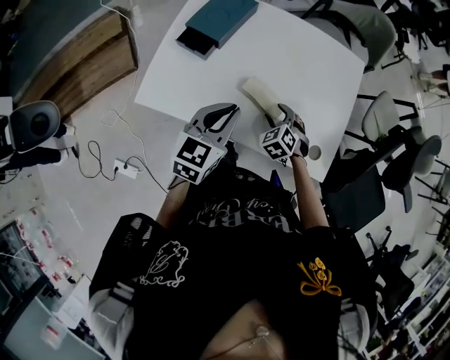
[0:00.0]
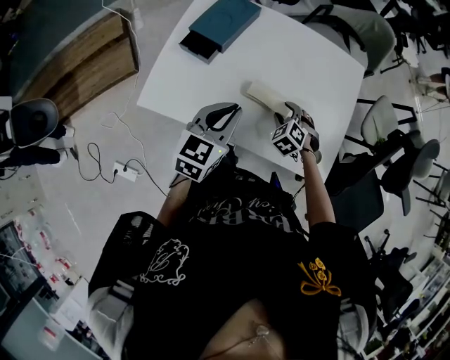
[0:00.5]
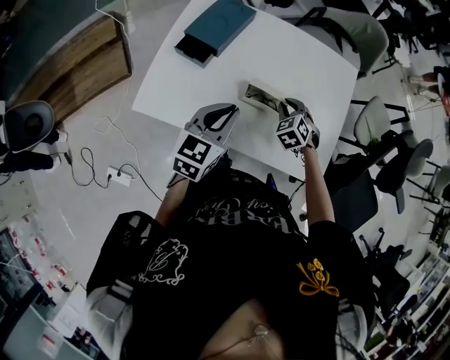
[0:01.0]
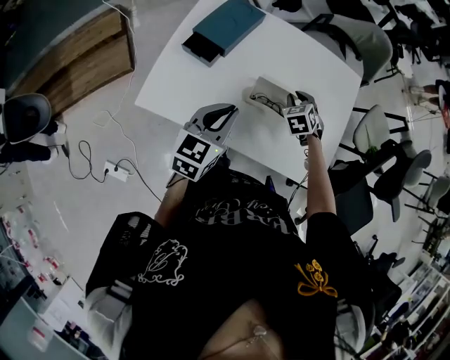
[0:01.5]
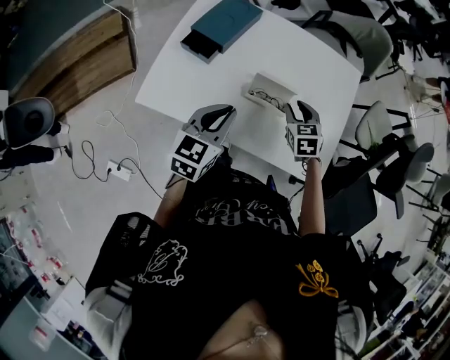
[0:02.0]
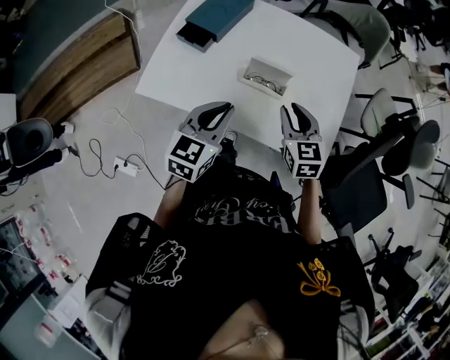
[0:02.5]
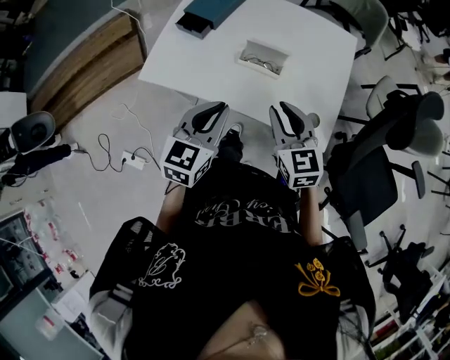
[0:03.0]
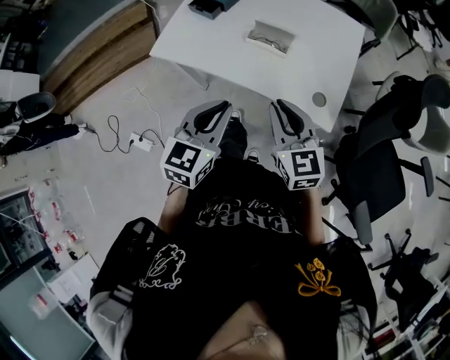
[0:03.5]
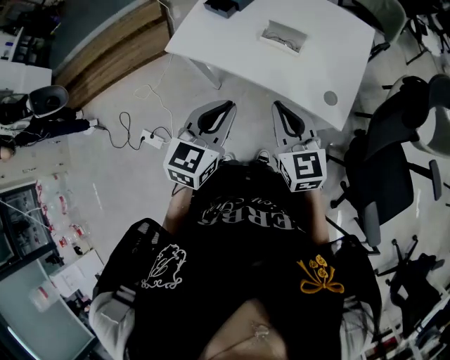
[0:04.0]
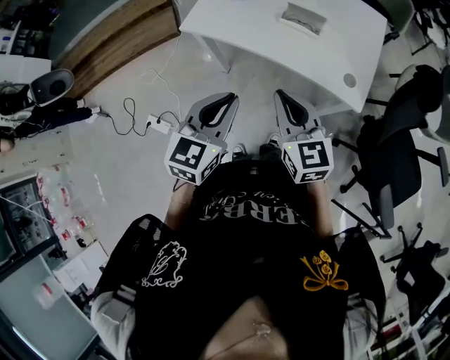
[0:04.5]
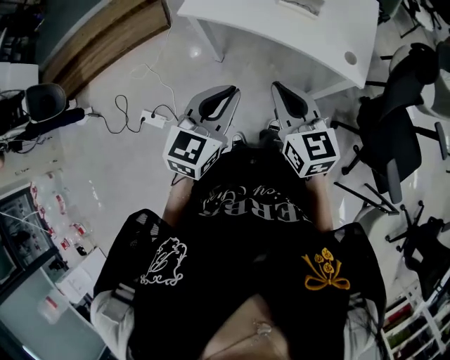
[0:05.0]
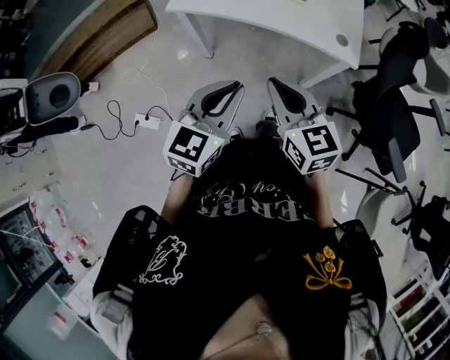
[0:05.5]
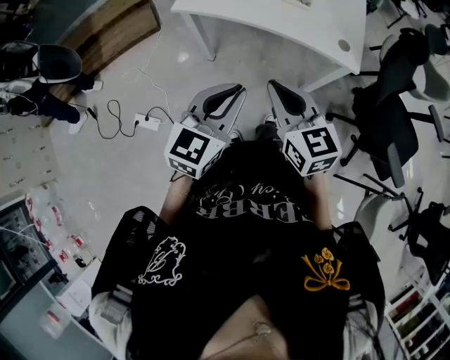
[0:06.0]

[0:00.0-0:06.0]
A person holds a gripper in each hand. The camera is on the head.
0:00.0 to 0:02.0: The right gripper heads upward and forward, covering approximately 10 cm, turns by roughly 30 degrees, and closes, then reopens.
0:02.0 to 0:04.0: The right gripper goes about 35 cm backward and upward, changes its angle by roughly 40 degrees, and closes; the left gripper moves backward, some 25 cm.
0:04.0 to 0:06.0: Both grippers move backward and to the left, approximately 20 cm.

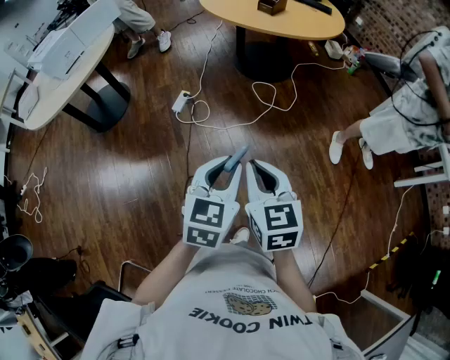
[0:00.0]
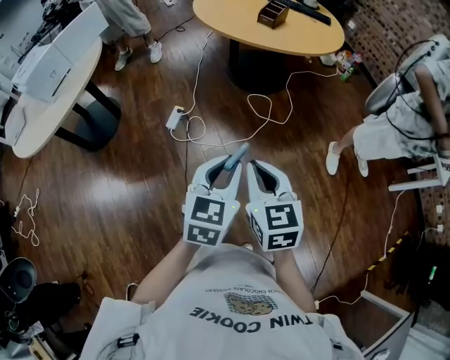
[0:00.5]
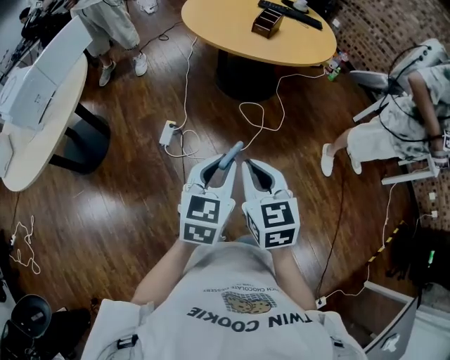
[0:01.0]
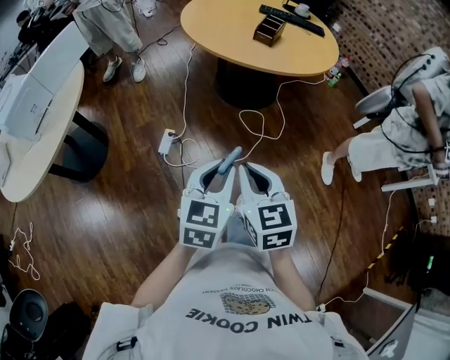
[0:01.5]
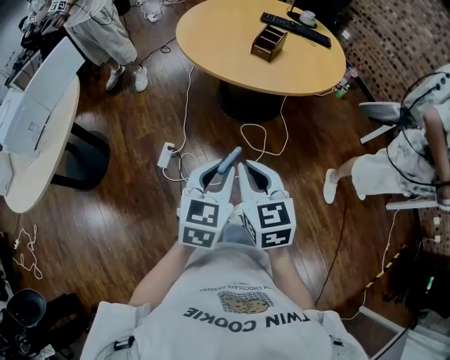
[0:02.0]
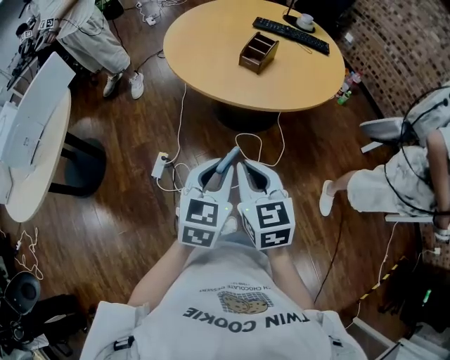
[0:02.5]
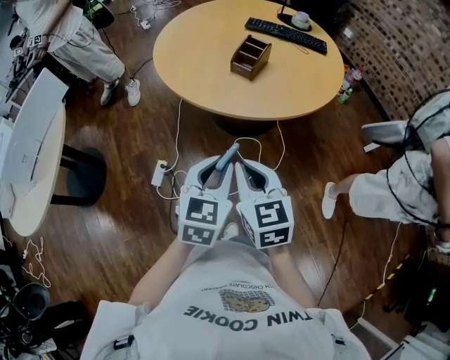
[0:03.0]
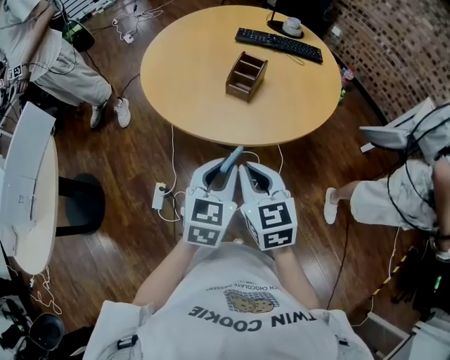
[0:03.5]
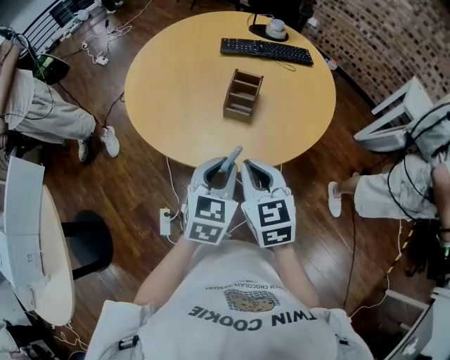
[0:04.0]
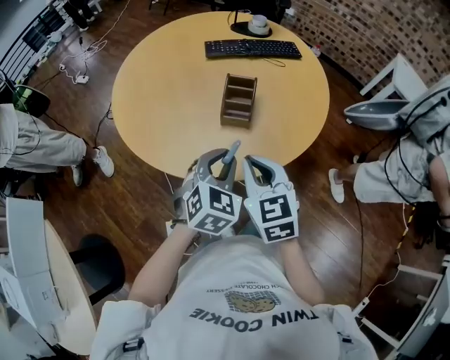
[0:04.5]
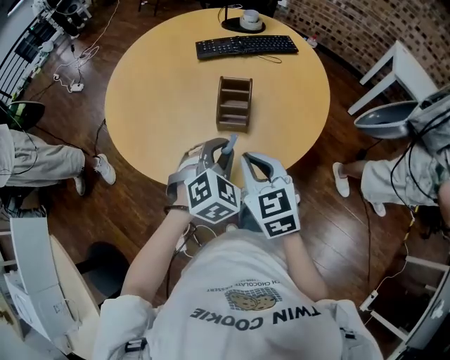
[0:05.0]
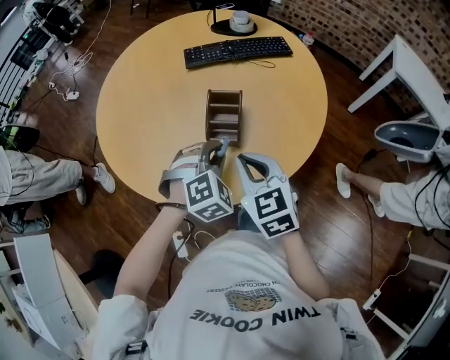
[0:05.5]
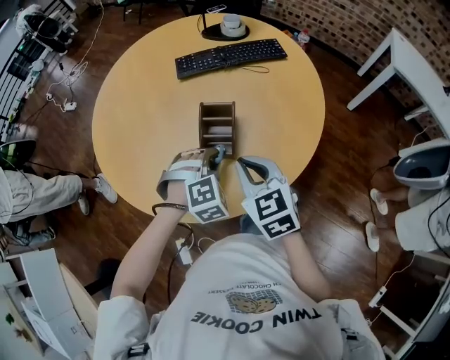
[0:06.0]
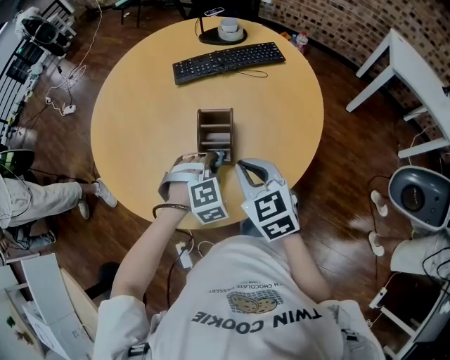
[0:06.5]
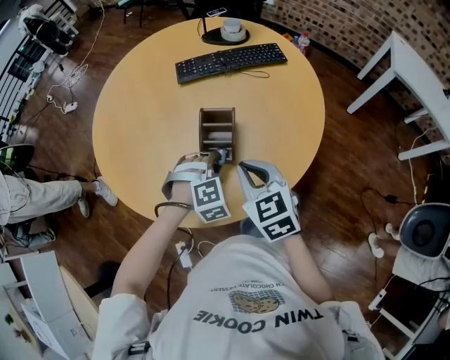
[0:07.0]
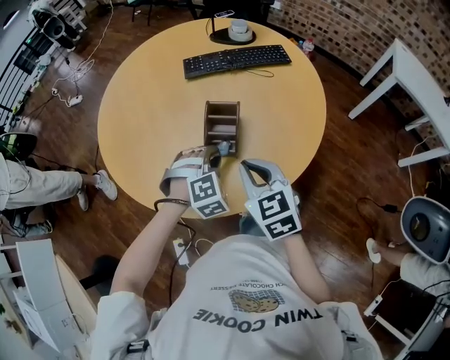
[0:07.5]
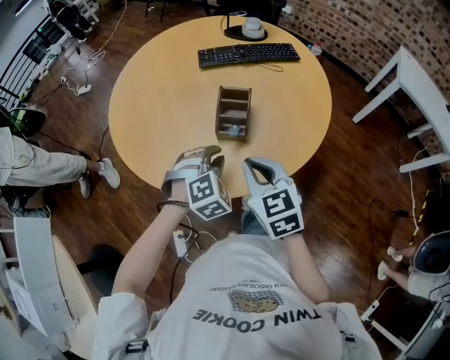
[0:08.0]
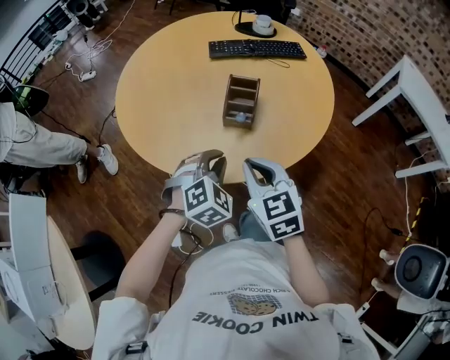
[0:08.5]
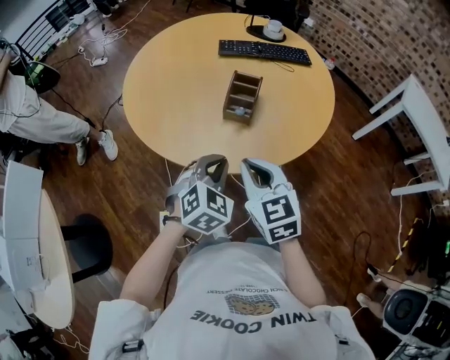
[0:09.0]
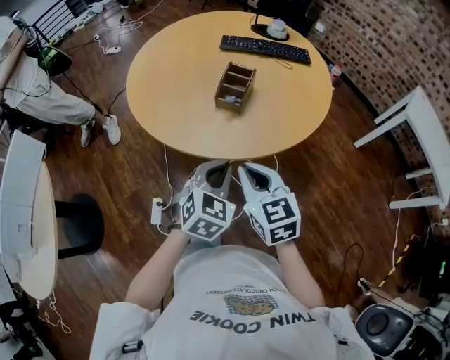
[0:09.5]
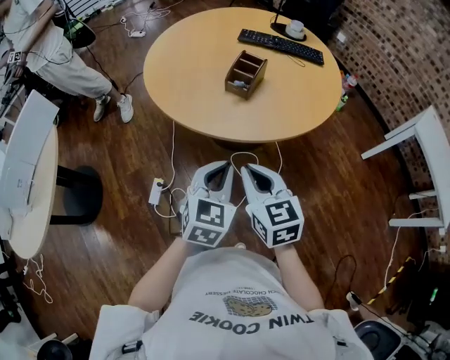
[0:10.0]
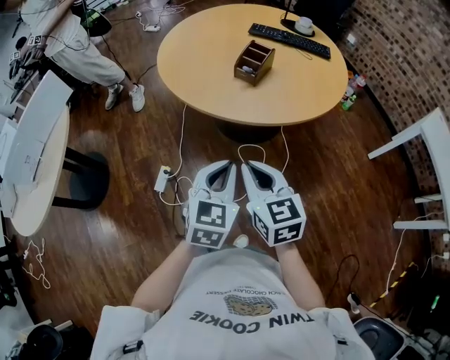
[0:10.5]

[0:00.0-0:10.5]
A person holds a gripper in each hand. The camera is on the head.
0:00.0 to 0:02.0: The grippers both shift forward by approximately 40 cm.
0:02.0 to 0:04.0: The two grippers go roughly 40 cm forward.
0:04.0 to 0:06.5: The right gripper is displaced forward by approximately 20 cm, while the left gripper is displaced forward and downward by approximately 25 cm, and twists approximately 70 degrees clockwise, seen from behind.
0:06.5 to 0:08.5: The left gripper shifts some 15 cm backward, upward and to the left, and turns by some 30 degrees, while the right gripper heads backward and to the left, covering some 15 cm.
0:08.5 to 0:10.5: Both grippers move backward, roughly 25 cm. The left gripper rolls counterclockwise, seen from behind, by about 50 degrees; the right gripper rotates roughly 20 degrees.

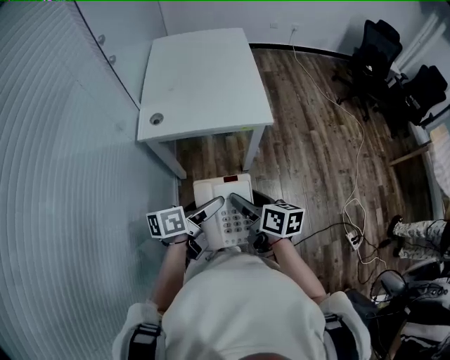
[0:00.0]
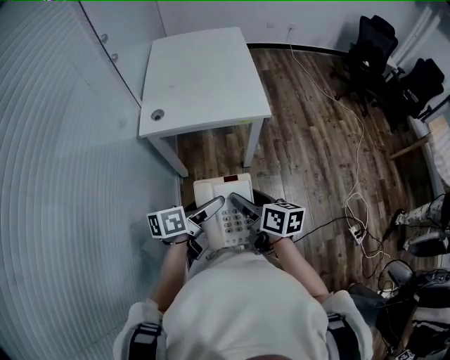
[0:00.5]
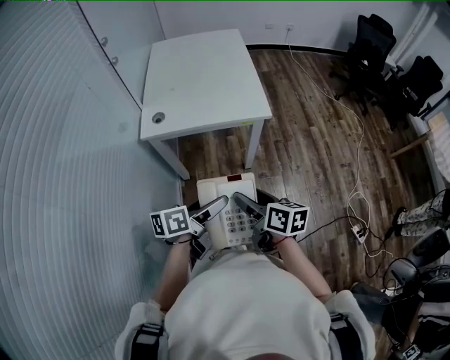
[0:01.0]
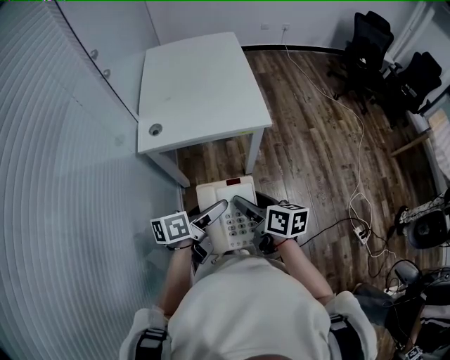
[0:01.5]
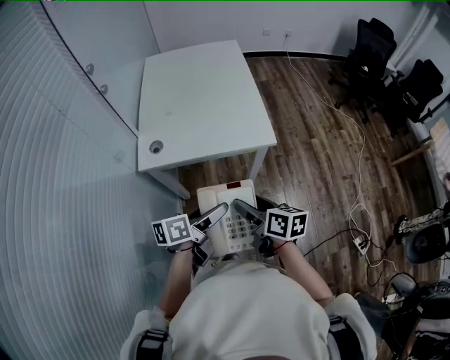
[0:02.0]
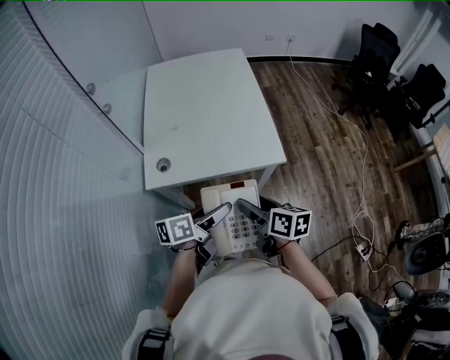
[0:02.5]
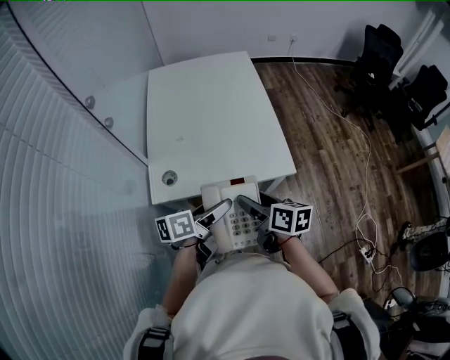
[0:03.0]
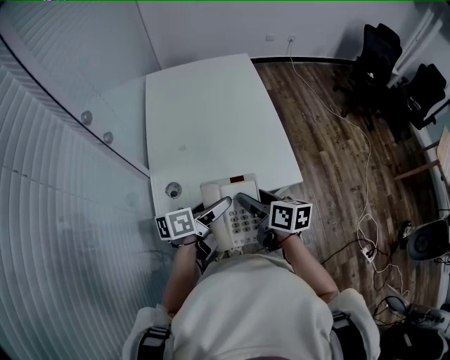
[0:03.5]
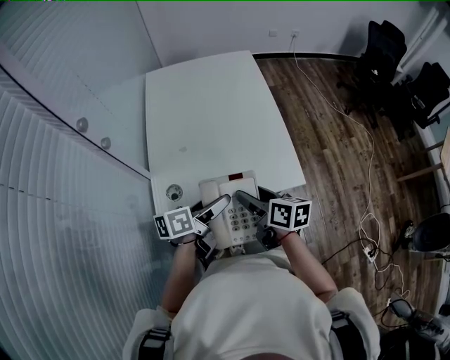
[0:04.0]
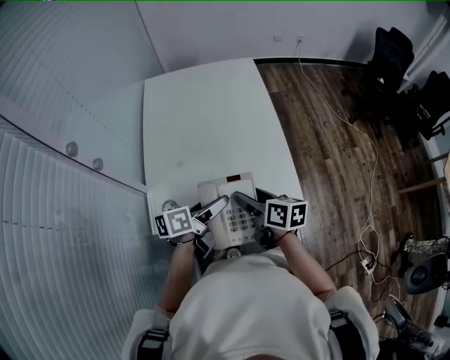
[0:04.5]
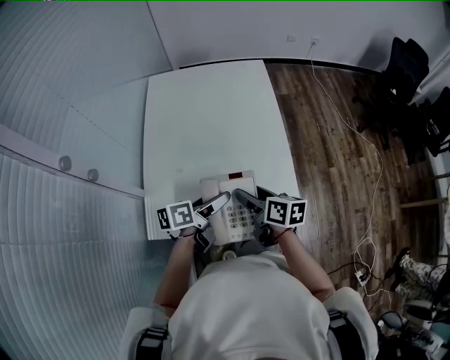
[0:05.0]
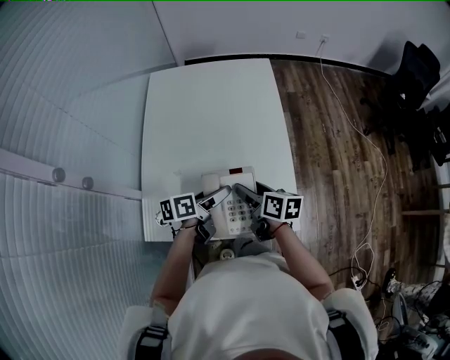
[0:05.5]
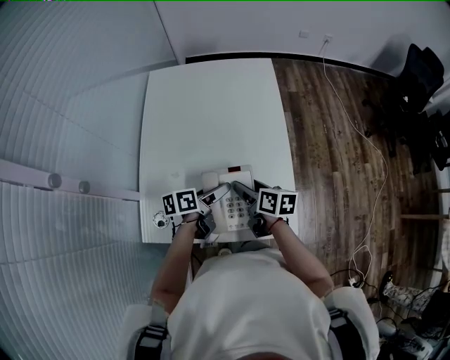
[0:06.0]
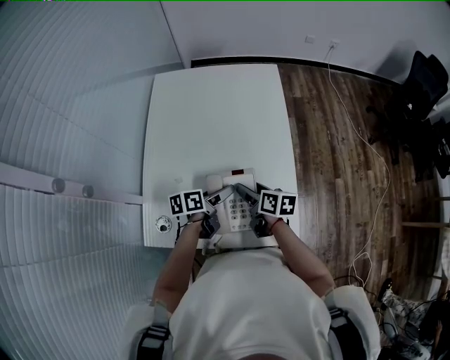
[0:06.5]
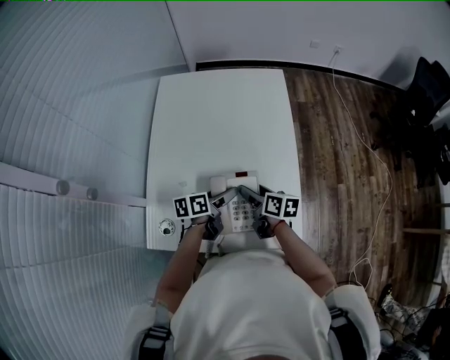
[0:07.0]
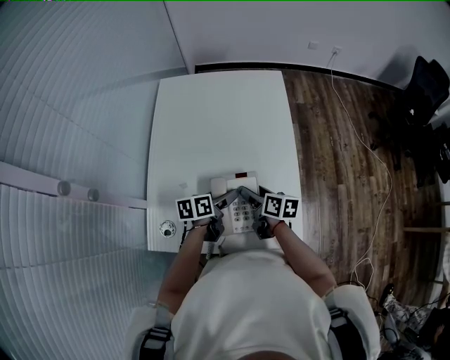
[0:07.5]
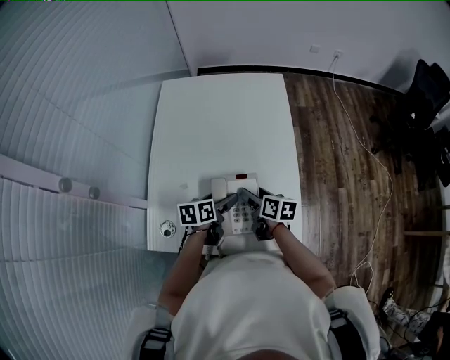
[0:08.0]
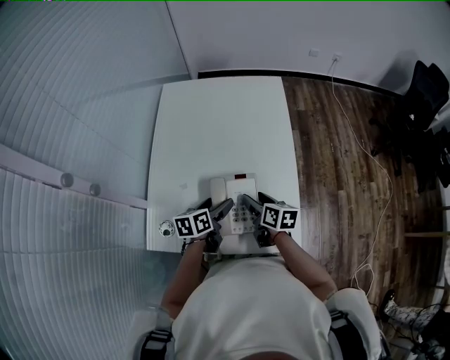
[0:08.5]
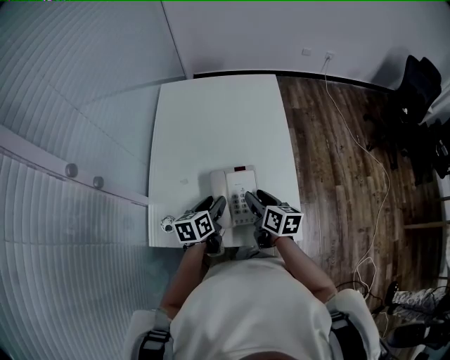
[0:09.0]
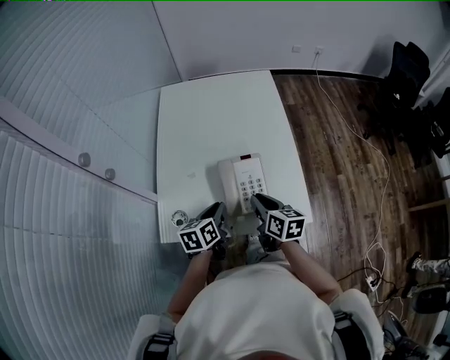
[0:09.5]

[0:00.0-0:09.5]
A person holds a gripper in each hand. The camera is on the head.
0:00.0 to 0:02.0: The left gripper reaches approximately 10 cm backward, then returns. The right gripper moves approximately 10 cm backward and comes back.
0:02.0 to 0:04.0: The grippers both shift forward by approximately 25 cm.
0:04.0 to 0:05.5: The grippers both shift forward by approximately 20 cm.
0:05.5 to 0:07.5: The left gripper travels downward and forward by about 10 cm; the right gripper heads forward and downward, covering approximately 10 cm.
0:07.5 to 0:09.5: The left gripper moves backward, to the left and upward, approximately 15 cm, and closes, while the right gripper goes about 15 cm backward and upward, and closes up.

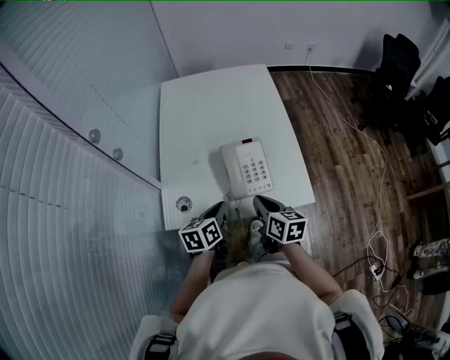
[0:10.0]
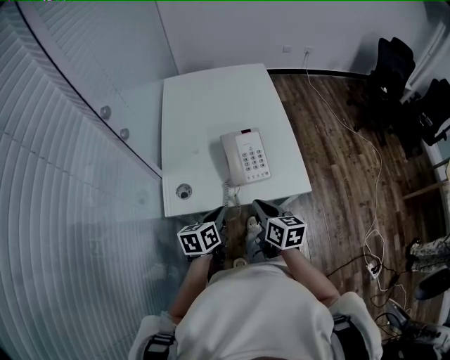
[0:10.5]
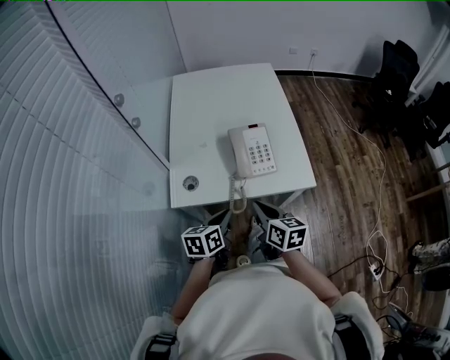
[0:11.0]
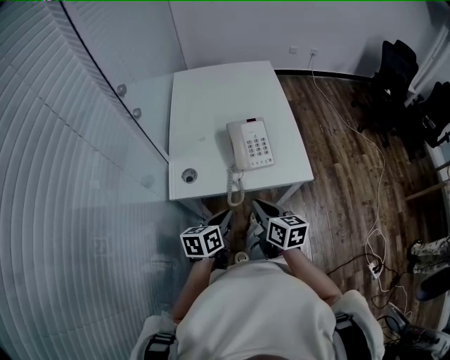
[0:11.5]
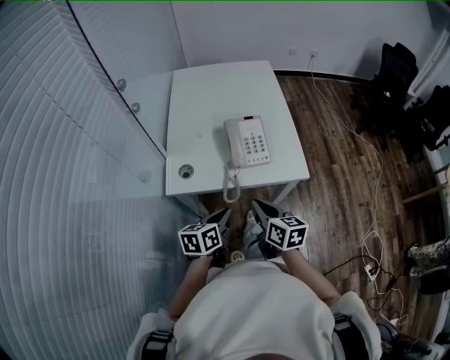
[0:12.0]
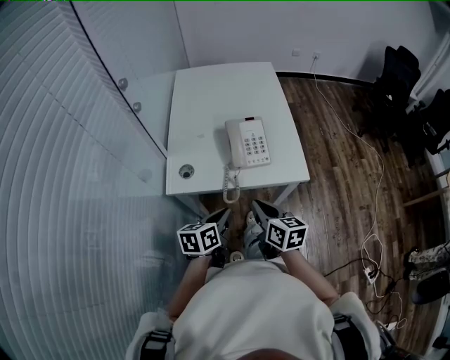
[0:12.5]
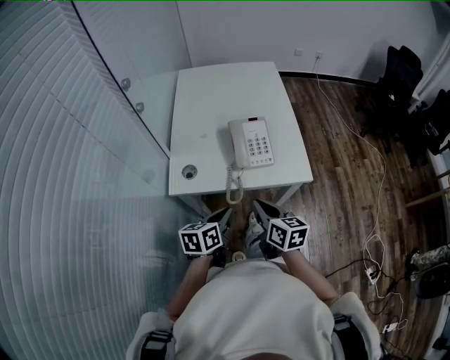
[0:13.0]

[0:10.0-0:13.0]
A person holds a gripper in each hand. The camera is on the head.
0:10.0 to 0:11.5: Both grippers travel together backward, some 15 cm.
0:11.5 to 0:13.0: There are only small adjustments of the grippers.
